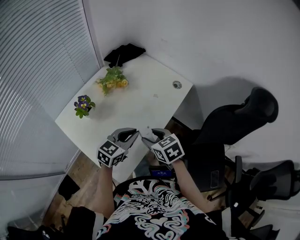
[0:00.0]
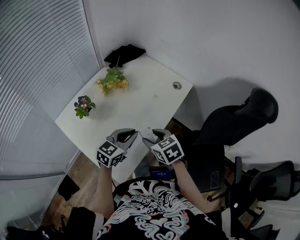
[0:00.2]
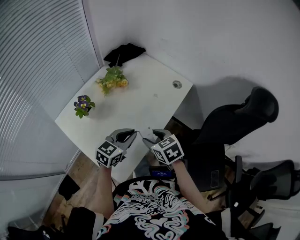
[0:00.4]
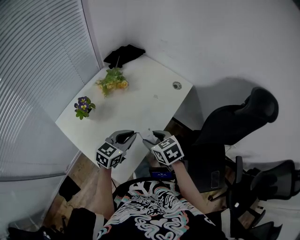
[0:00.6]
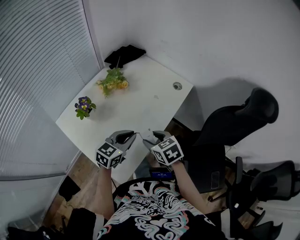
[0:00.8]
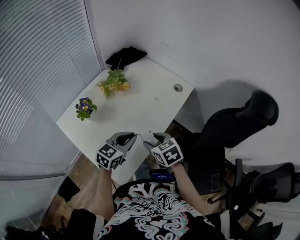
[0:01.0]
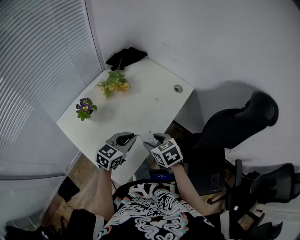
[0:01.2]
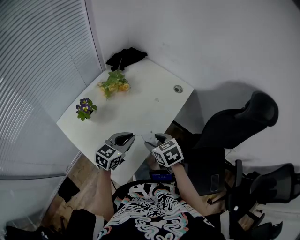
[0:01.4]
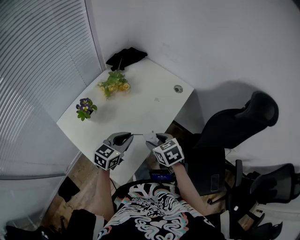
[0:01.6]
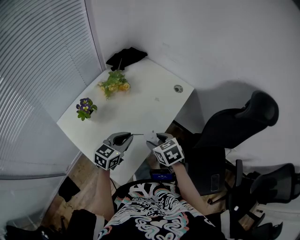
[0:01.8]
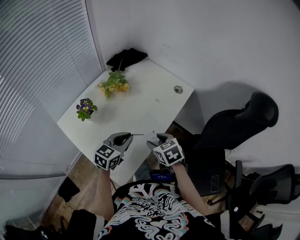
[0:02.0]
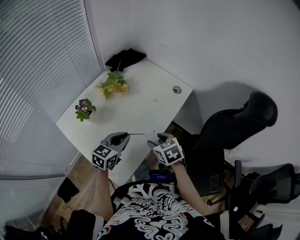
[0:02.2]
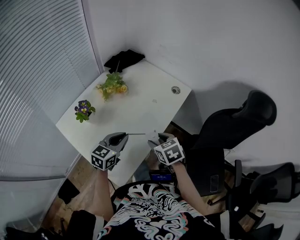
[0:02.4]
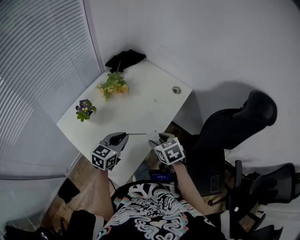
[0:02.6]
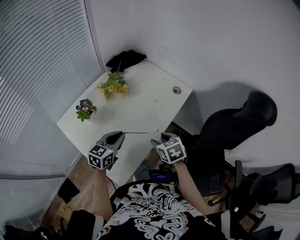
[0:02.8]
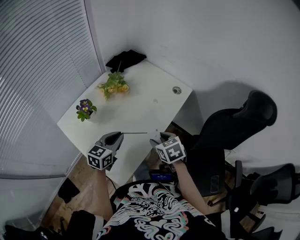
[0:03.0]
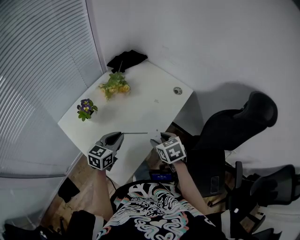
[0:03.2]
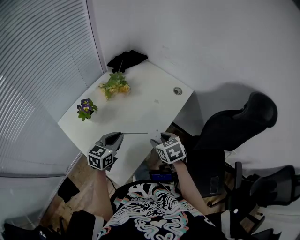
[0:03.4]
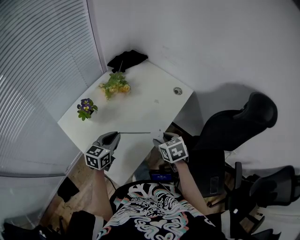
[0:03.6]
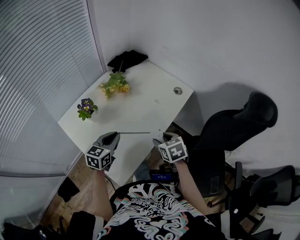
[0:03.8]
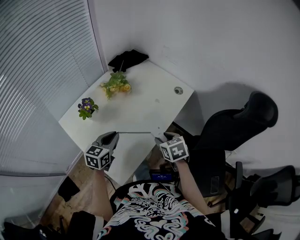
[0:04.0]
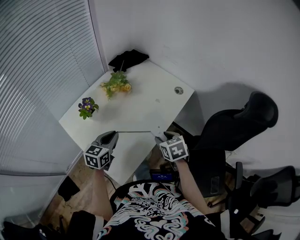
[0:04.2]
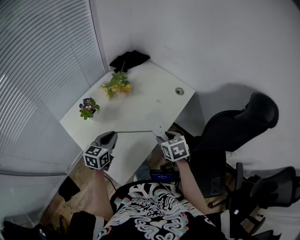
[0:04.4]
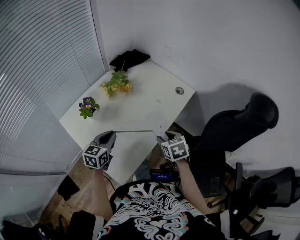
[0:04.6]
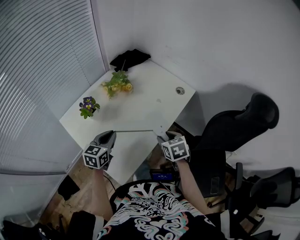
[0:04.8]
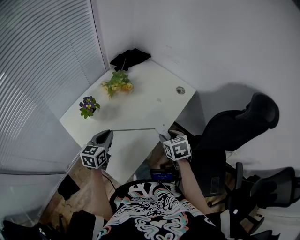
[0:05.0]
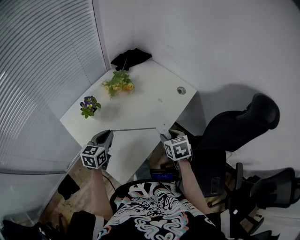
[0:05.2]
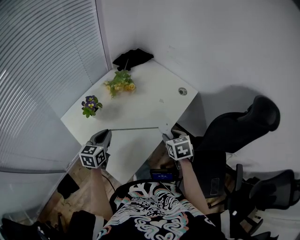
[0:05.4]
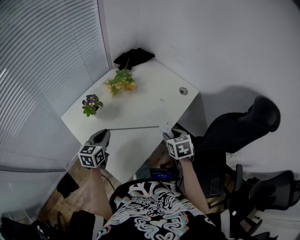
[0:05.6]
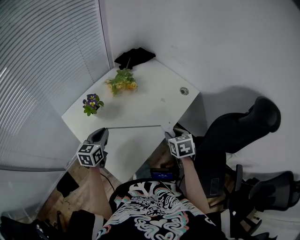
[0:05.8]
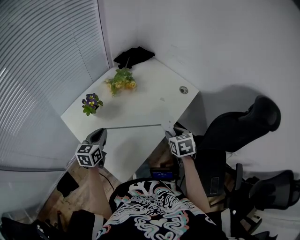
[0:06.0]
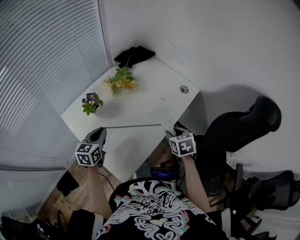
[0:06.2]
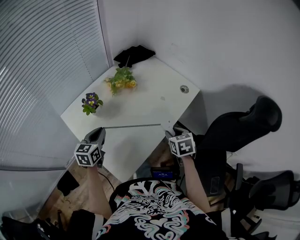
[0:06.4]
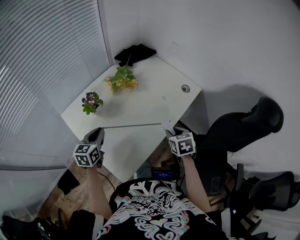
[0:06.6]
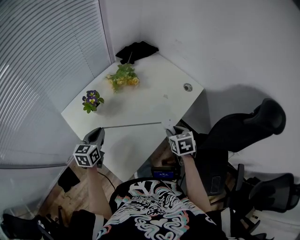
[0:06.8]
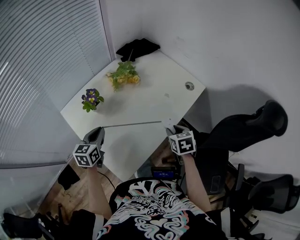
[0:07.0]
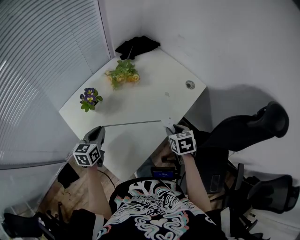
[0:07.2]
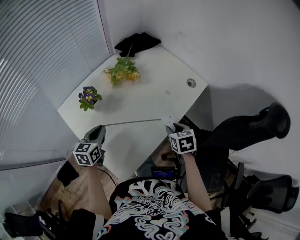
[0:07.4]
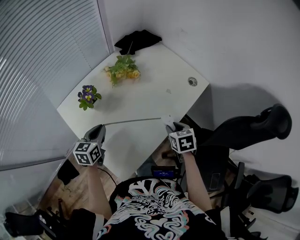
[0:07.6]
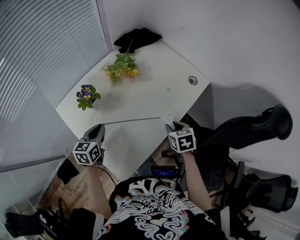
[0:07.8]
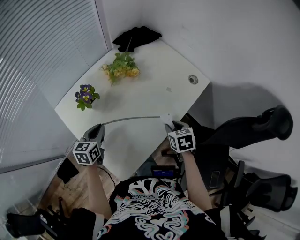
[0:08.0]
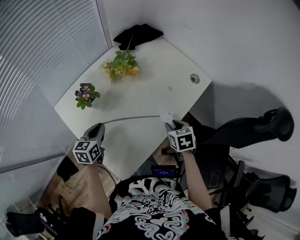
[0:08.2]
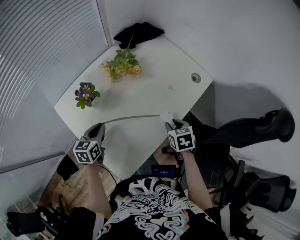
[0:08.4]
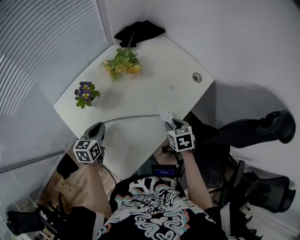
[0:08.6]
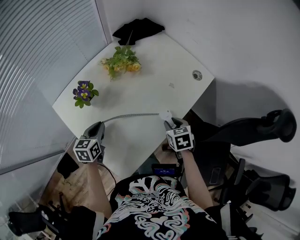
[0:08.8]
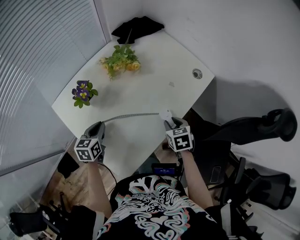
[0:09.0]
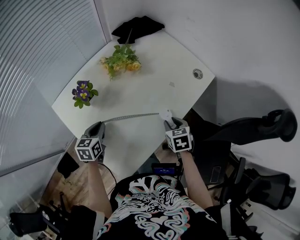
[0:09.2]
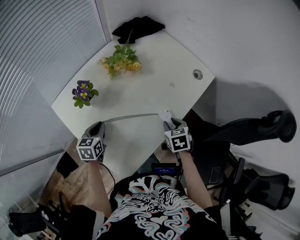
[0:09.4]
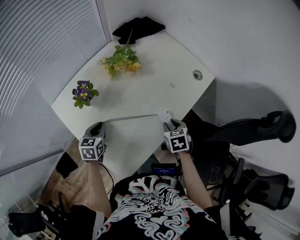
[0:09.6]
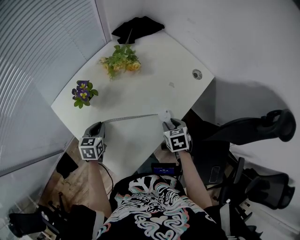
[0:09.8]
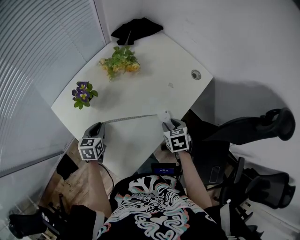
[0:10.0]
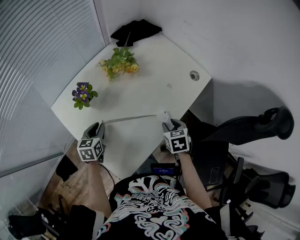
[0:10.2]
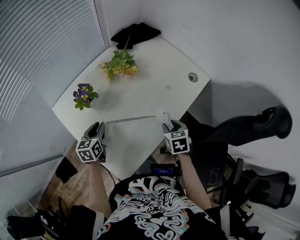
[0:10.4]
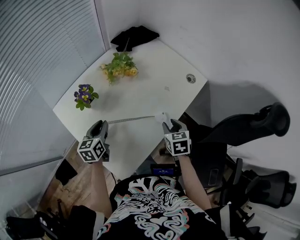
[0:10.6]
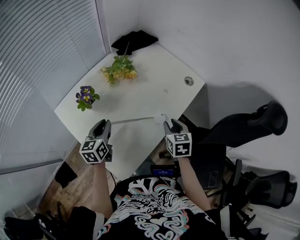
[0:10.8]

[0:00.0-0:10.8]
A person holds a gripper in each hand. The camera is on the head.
0:00.0 to 0:01.6: The grippers stay close to where they were, moving slightly.
0:01.6 to 0:03.0: The grippers move only a little.
0:03.0 to 0:04.6: The left gripper changes place by some 5 cm.
0:04.6 to 0:06.2: The left gripper shifts about 5 cm to the left.
0:06.2 to 0:07.8: Both grippers move downward, approximately 5 cm.
0:07.8 to 0:09.2: The left gripper goes some 5 cm downward.
0:09.2 to 0:10.8: Both grippers travel together upward, some 5 cm.

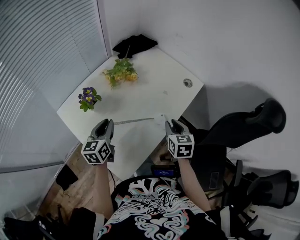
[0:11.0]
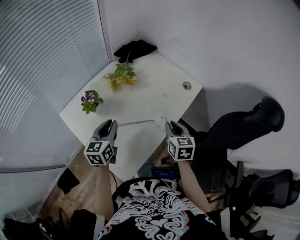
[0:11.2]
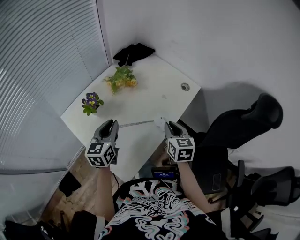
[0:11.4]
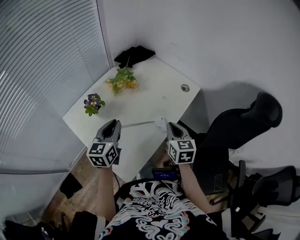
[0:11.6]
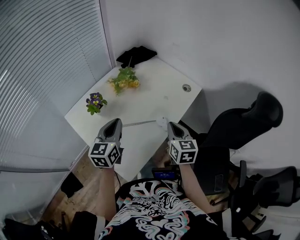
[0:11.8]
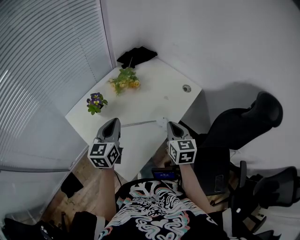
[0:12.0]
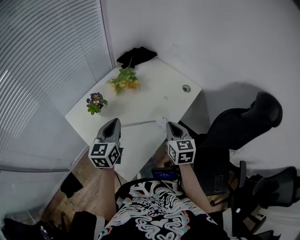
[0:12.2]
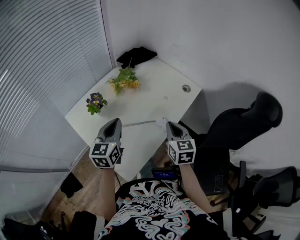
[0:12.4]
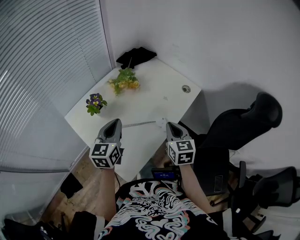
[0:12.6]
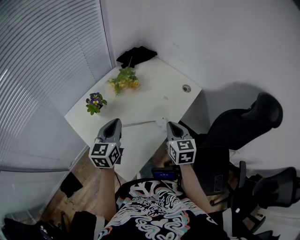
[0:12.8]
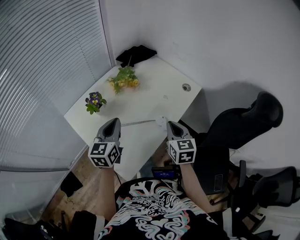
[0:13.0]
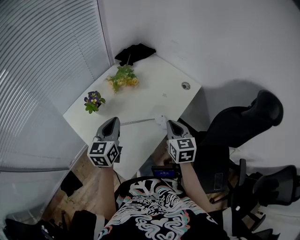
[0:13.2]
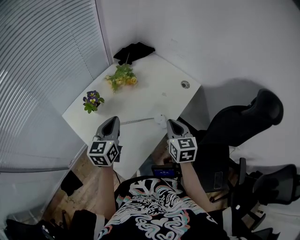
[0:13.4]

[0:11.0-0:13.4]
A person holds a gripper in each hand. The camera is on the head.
0:11.0 to 0:12.2: Both grippers move upward, approximately 10 cm. The right gripper closes its fingers.
0:12.2 to 0:13.4: There are only small adjustments of the grippers.

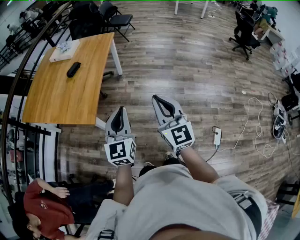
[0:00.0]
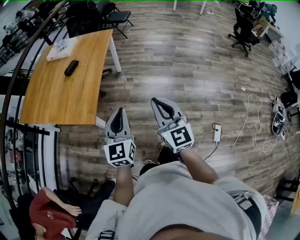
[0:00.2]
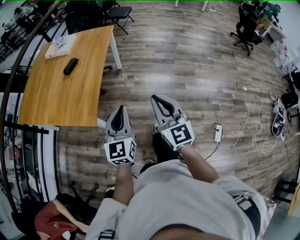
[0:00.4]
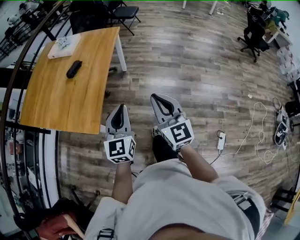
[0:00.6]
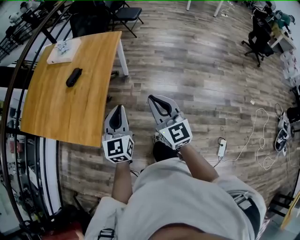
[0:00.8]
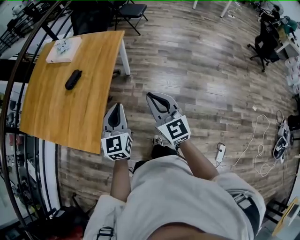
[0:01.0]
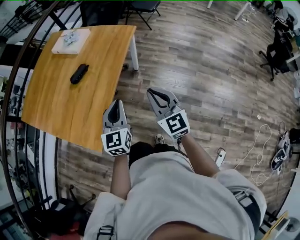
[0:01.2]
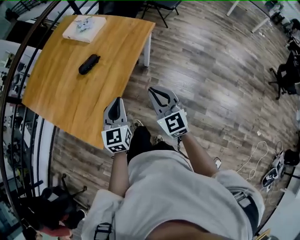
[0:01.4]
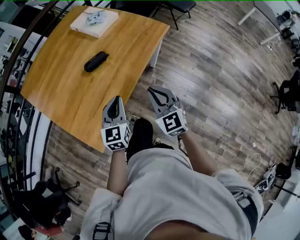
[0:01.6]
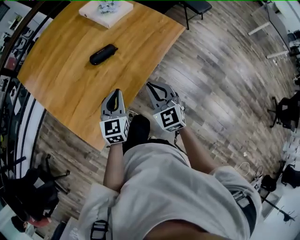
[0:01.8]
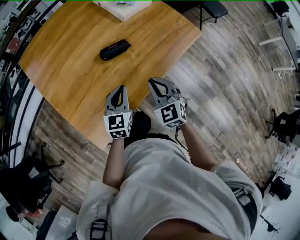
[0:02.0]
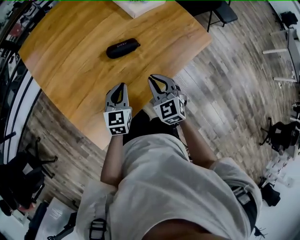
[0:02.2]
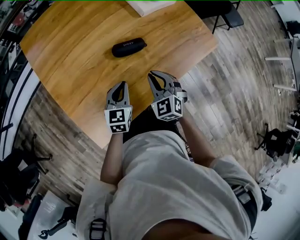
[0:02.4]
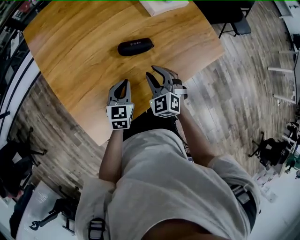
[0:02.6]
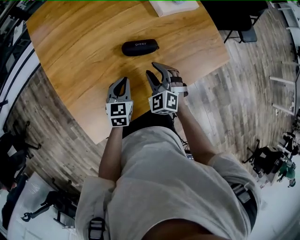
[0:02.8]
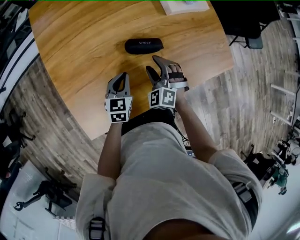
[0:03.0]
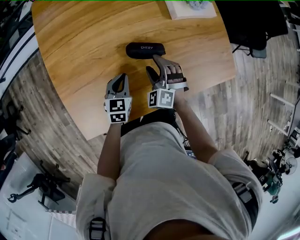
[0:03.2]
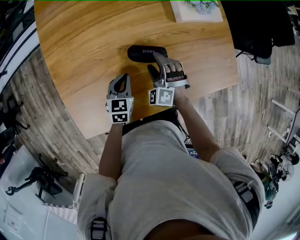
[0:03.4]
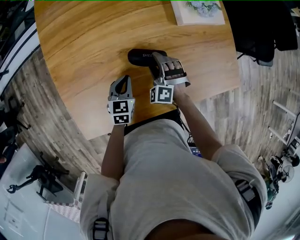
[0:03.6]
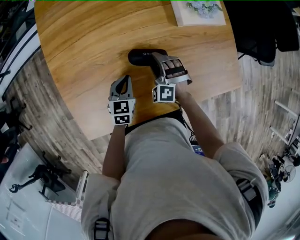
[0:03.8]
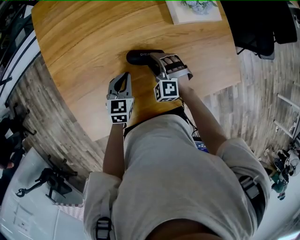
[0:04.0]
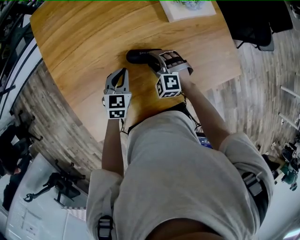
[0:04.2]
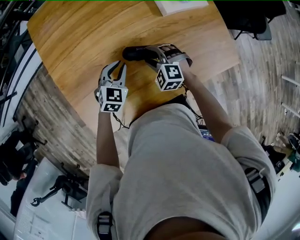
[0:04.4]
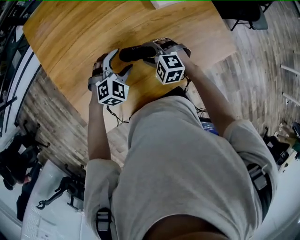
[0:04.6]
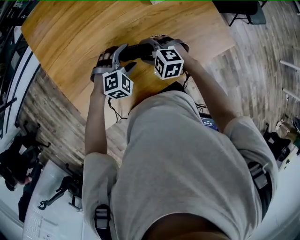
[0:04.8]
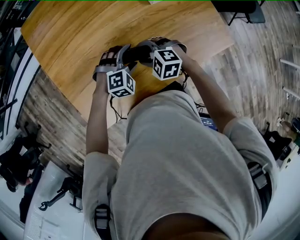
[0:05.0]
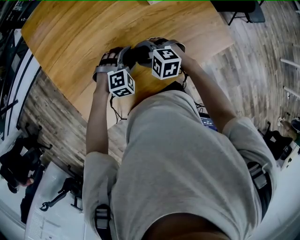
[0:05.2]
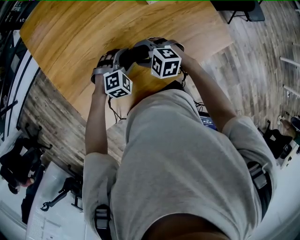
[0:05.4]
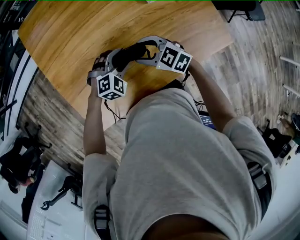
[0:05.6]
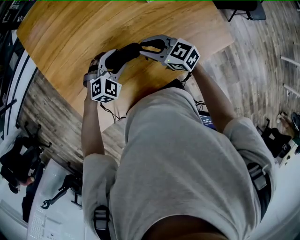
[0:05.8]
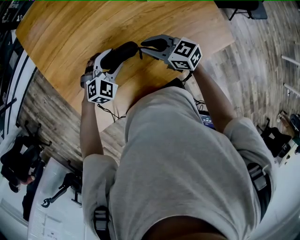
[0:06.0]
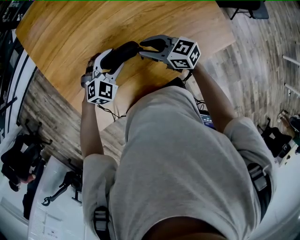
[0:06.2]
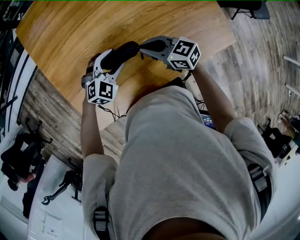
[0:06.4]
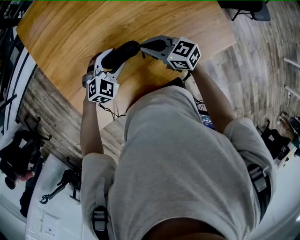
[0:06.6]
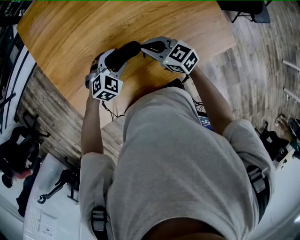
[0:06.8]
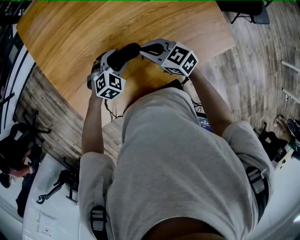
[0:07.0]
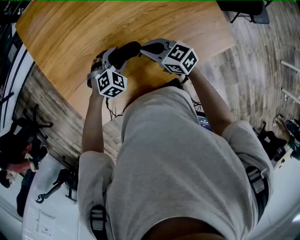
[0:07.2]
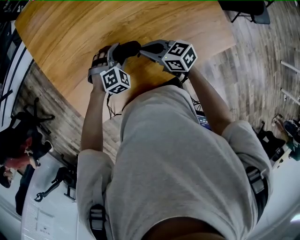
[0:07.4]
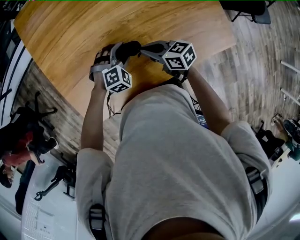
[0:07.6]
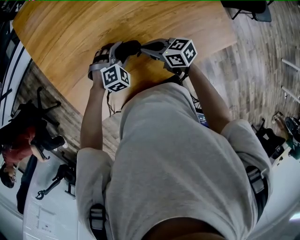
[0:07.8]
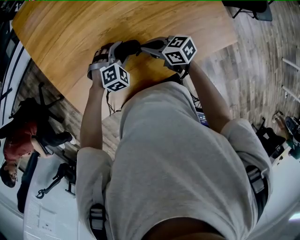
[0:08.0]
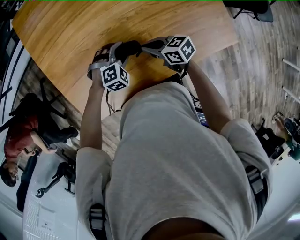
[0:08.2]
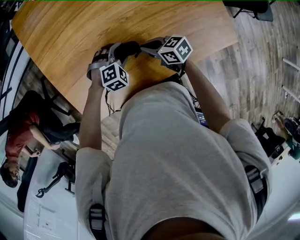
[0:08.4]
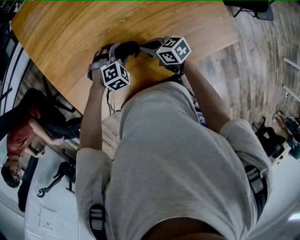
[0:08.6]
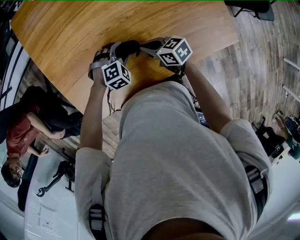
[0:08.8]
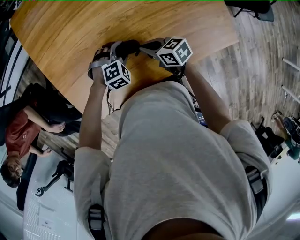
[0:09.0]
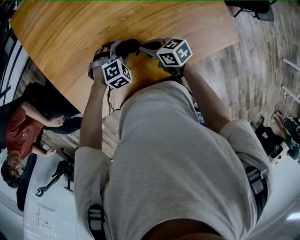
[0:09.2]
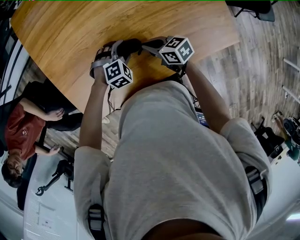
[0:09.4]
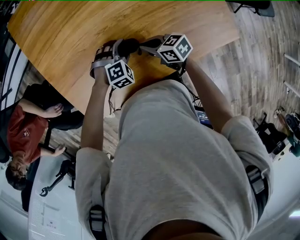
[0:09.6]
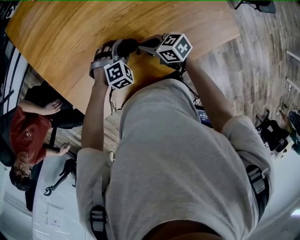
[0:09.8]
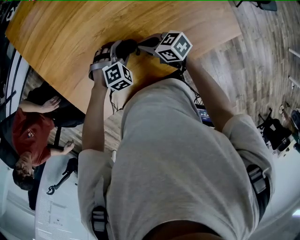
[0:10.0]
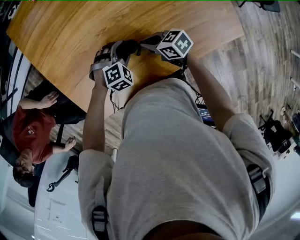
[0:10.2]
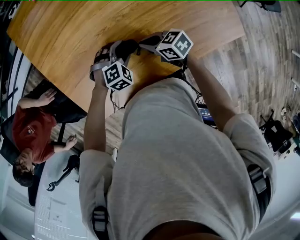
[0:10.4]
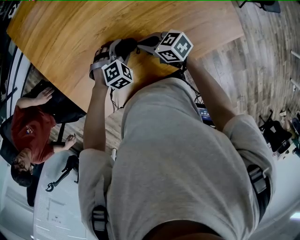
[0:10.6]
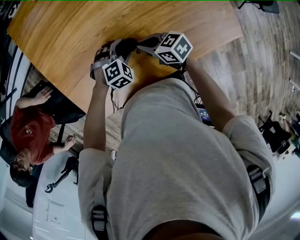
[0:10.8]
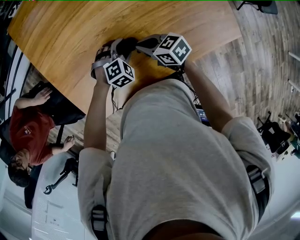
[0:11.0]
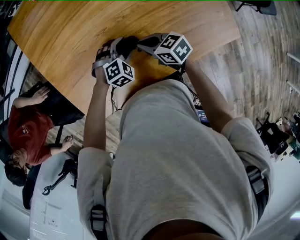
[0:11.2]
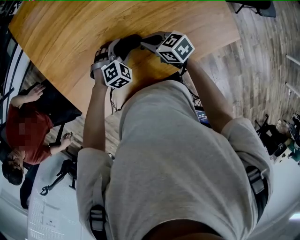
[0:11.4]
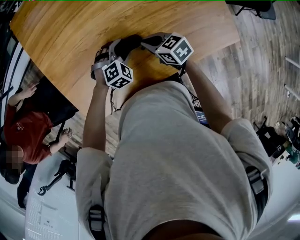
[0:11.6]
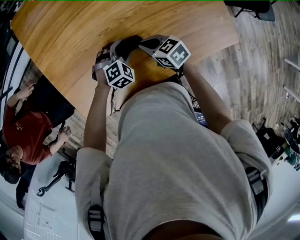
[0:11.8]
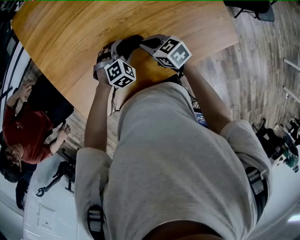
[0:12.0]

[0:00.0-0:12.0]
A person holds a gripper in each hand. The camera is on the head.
0:00.0 to 0:01.6: Both grippers are carried some 50 cm. The left gripper rotates about 30 degrees. Meanwhile the right gripper turns by about 40 degrees.
0:01.6 to 0:03.0: Both grippers move forward, downward and to the left, about 30 cm. The right gripper rotates around the line of its fingers by some 50 degrees, counterclockwise from behind, and opens up, while the left gripper swivels approximately 30 degrees.
0:03.0 to 0:04.4: Both grippers move forward, about 5 cm. The left gripper rotates about 30 degrees. Meanwhile the right gripper swivels about 20 degrees.
0:04.4 to 0:06.0: The right gripper goes roughly 5 cm upward, rolls clockwise, seen from behind, by some 50 degrees, and closes its fingers. The left gripper turns by about 30 degrees, and opens up.
0:06.0 to 0:07.6: Both grippers travel together downward, roughly 5 cm.
0:07.6 to 0:12.0: The grippers make only small movements.
